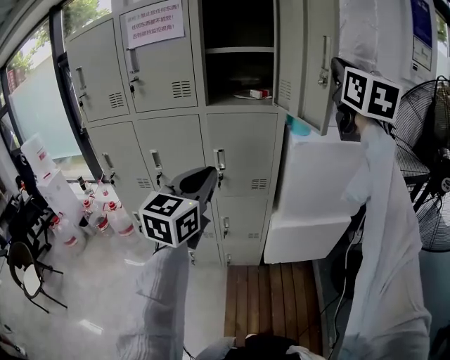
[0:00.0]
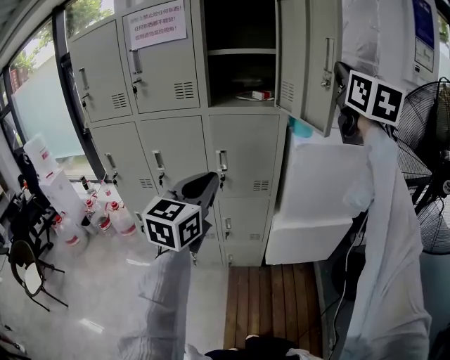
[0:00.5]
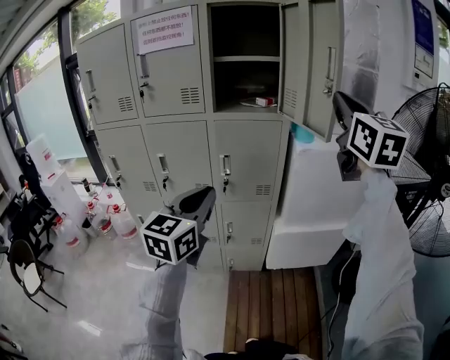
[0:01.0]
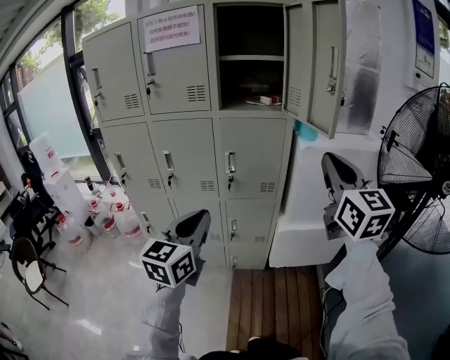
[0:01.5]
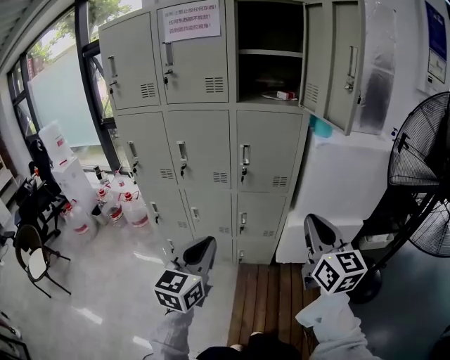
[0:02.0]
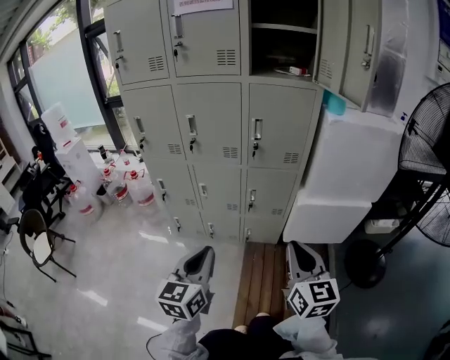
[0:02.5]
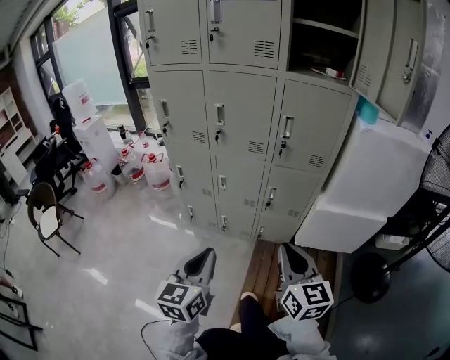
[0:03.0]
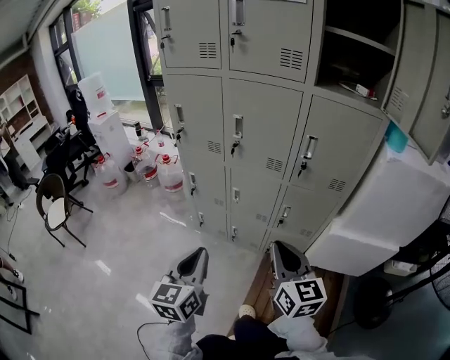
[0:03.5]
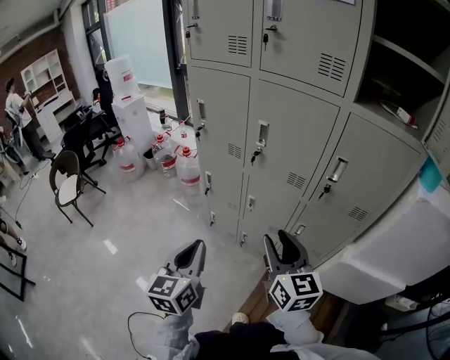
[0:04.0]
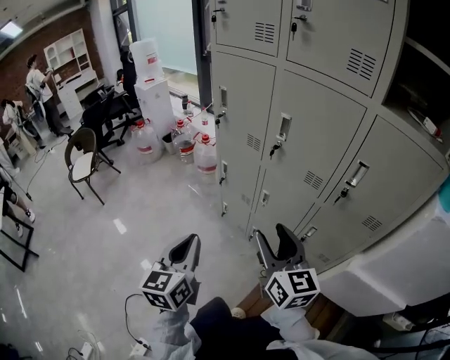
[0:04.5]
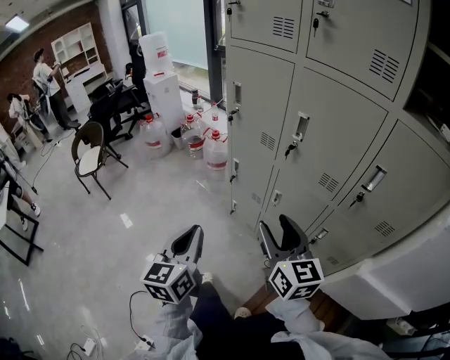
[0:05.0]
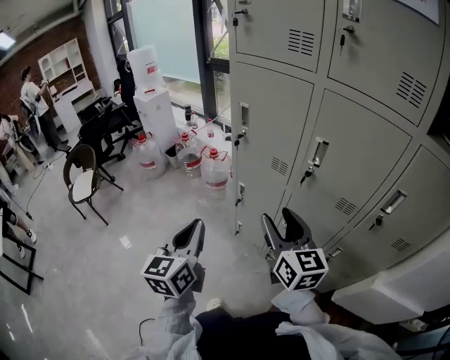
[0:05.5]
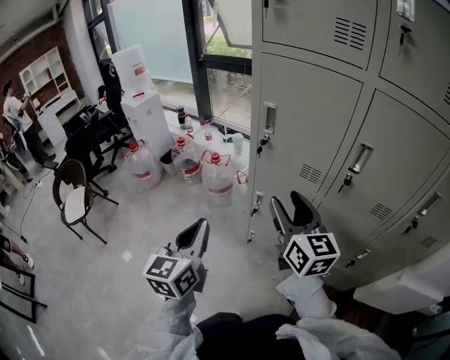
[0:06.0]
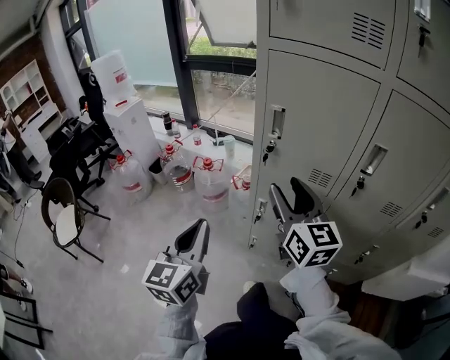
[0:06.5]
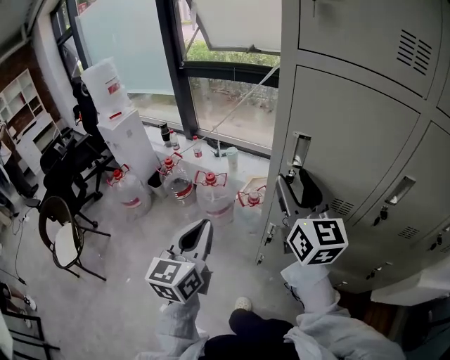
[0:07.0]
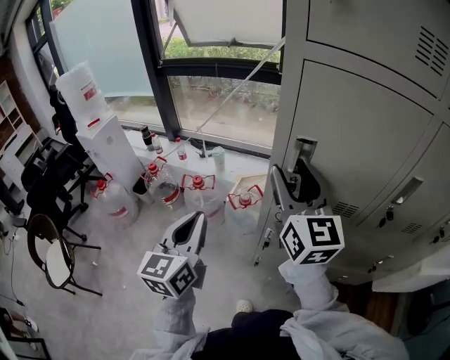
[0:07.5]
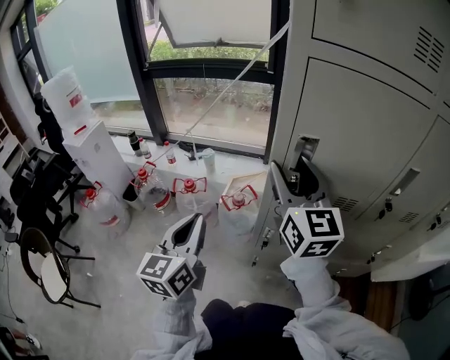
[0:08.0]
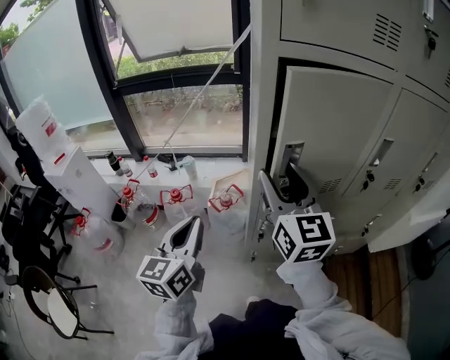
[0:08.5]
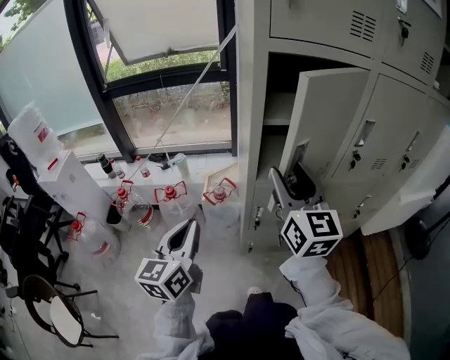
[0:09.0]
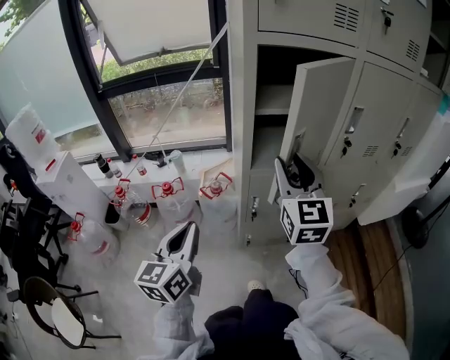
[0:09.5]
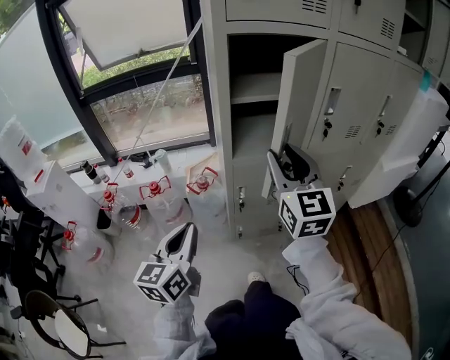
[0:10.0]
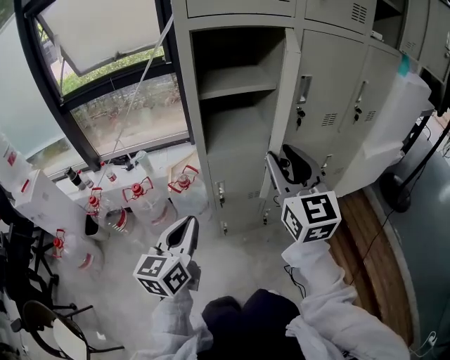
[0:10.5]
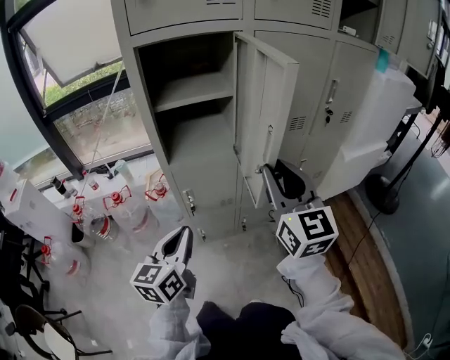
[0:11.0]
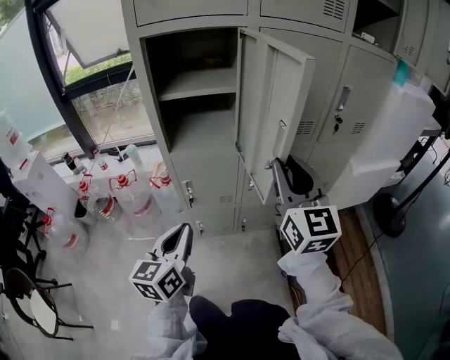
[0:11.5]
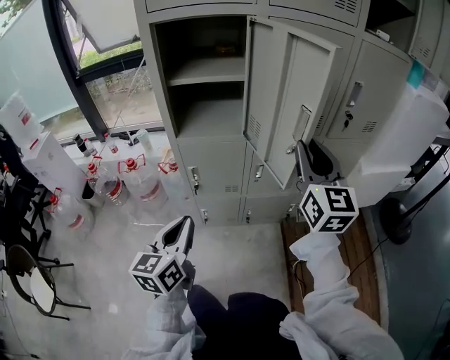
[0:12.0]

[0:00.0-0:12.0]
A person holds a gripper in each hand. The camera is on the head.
0:00.0 to 0:02.0: The left gripper heads backward, downward and to the left, covering some 20 cm. Meanwhile the right gripper heads downward and backward, covering roughly 40 cm, and swivels roughly 30 degrees.
0:02.0 to 0:04.0: The right gripper moves some 30 cm, turns by approximately 30 degrees, and opens its fingers, while the left gripper ends up approximately 20 cm from where it was, and changes its angle by approximately 40 degrees.
0:04.0 to 0:06.0: Both grippers move forward and to the left, about 35 cm.
0:06.0 to 0:08.0: Both grippers travel together forward and to the left, approximately 25 cm. The right gripper changes its angle by about 30 degrees.
0:08.0 to 0:10.0: The right gripper heads backward and to the right, covering approximately 15 cm, and changes its angle by some 20 degrees, while the left gripper shifts some 10 cm backward, and turns by roughly 20 degrees.
0:10.0 to 0:12.0: Both grippers travel together to the right, some 25 cm.

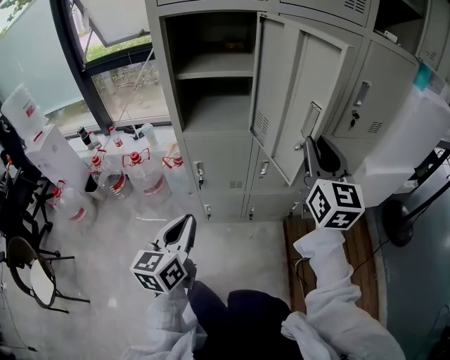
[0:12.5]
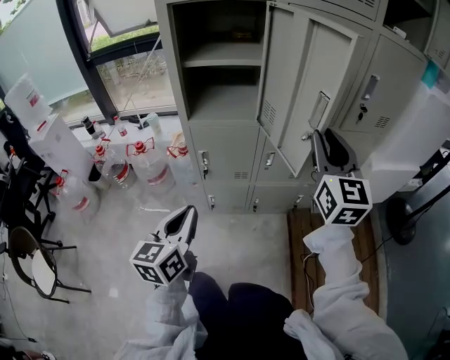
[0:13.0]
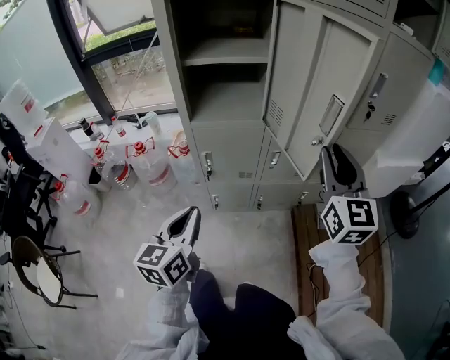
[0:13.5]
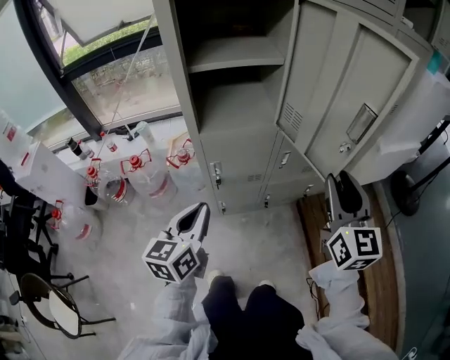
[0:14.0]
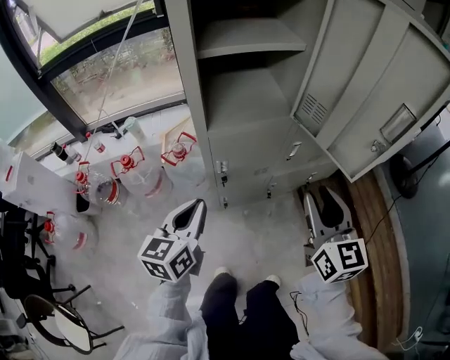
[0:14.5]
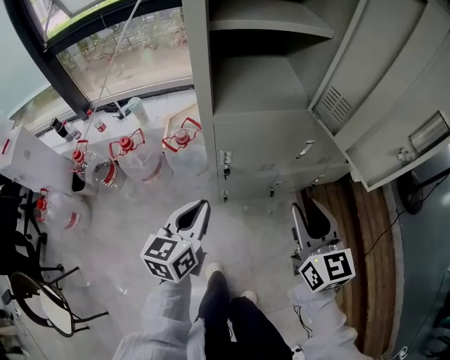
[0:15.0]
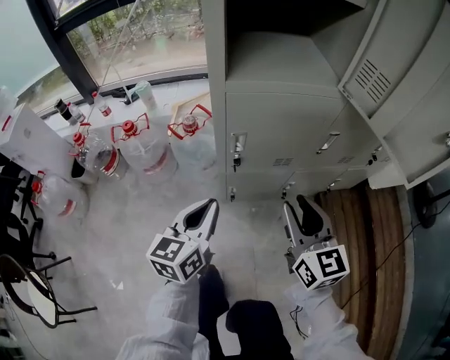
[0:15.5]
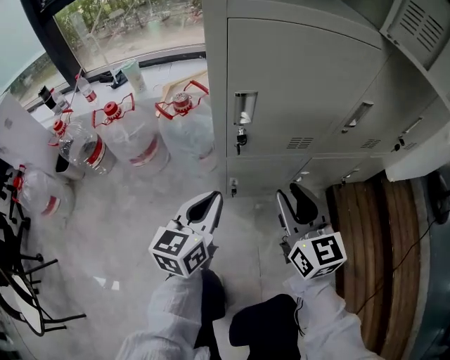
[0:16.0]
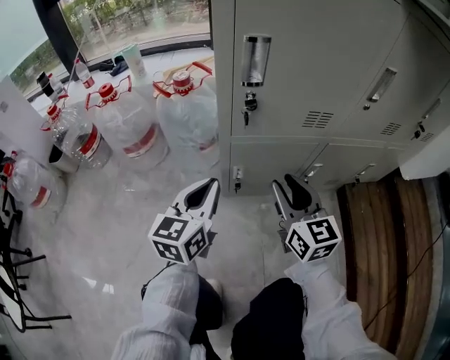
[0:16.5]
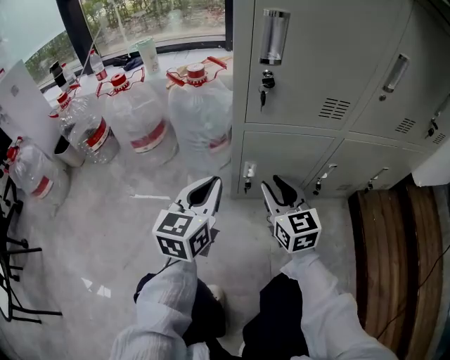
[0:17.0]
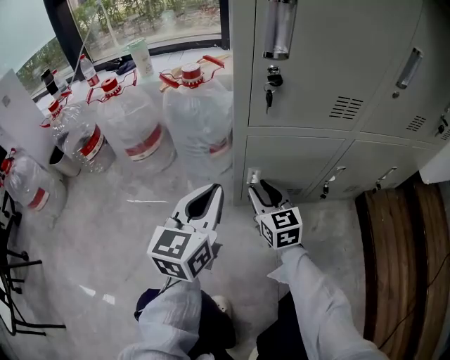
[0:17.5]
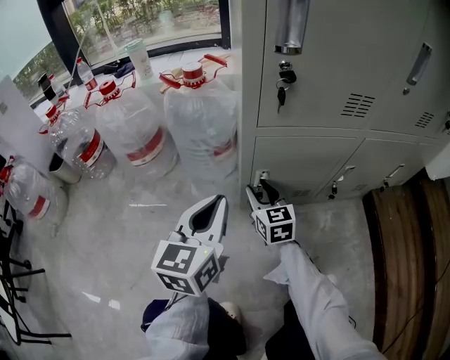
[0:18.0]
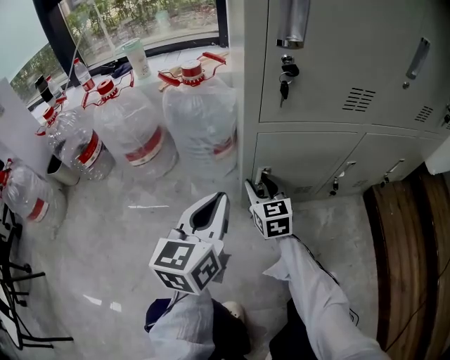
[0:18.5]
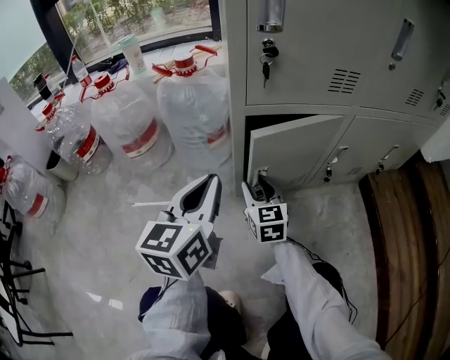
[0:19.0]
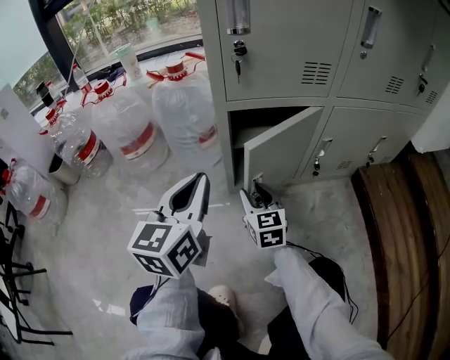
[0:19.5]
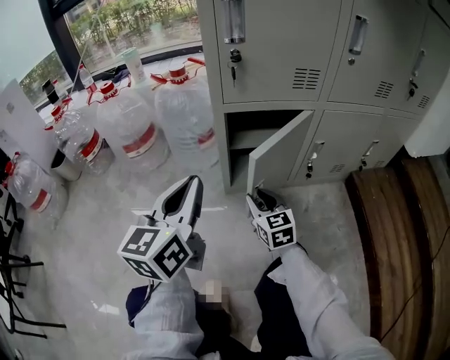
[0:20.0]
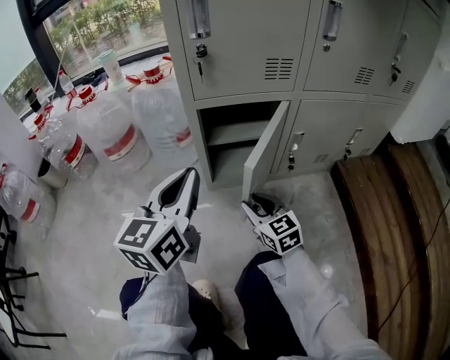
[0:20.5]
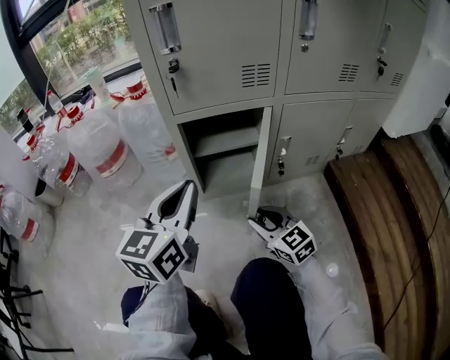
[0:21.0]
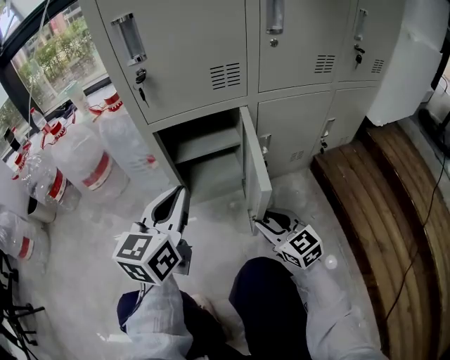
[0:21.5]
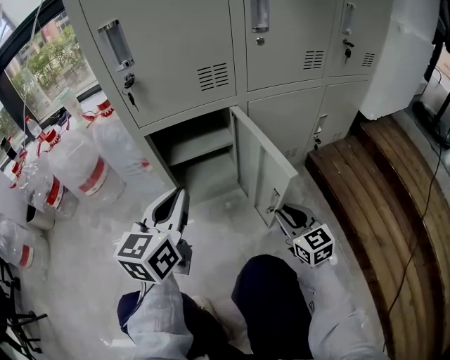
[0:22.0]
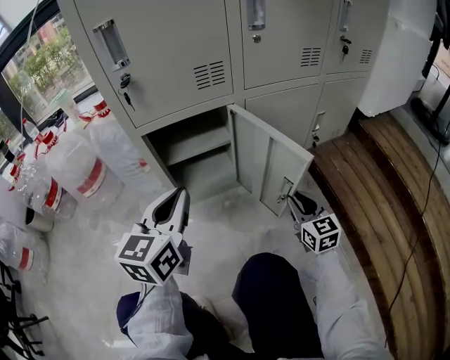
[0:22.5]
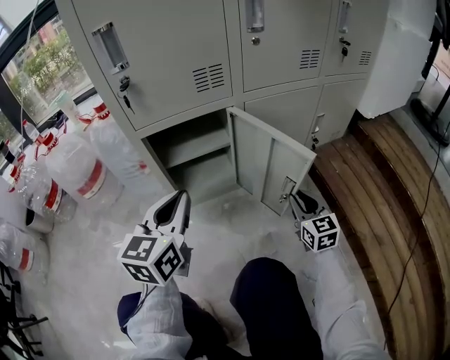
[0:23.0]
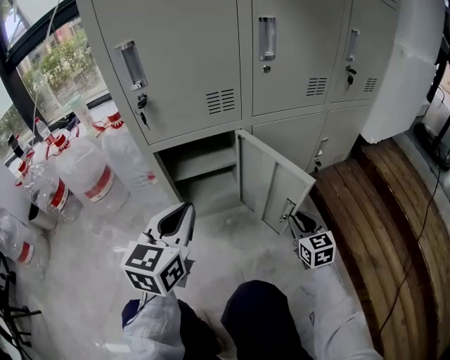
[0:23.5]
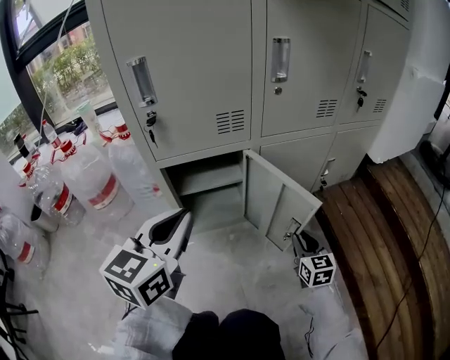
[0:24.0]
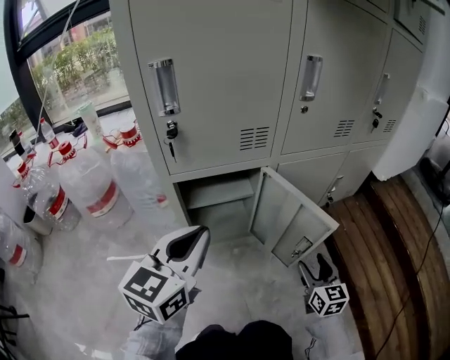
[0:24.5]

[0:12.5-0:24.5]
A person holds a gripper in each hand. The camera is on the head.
0:12.5 to 0:14.5: The left gripper is displaced to the left, forward and downward by roughly 20 cm; the right gripper travels to the left and downward by roughly 20 cm.
0:14.5 to 0:16.5: Both grippers move downward, roughly 50 cm.
0:16.5 to 0:18.5: The right gripper heads downward, to the left and forward, covering some 25 cm. The left gripper shifts approximately 5 cm downward.
0:18.5 to 0:20.5: The left gripper shifts about 10 cm backward, to the right and upward, while the right gripper goes approximately 20 cm backward and to the right.
0:20.5 to 0:22.5: The right gripper shifts some 25 cm to the right, and rotates some 30 degrees. The left gripper is displaced to the right by about 10 cm.
0:22.5 to 0:24.5: The right gripper opens up. The left gripper is displaced upward by approximately 5 cm.

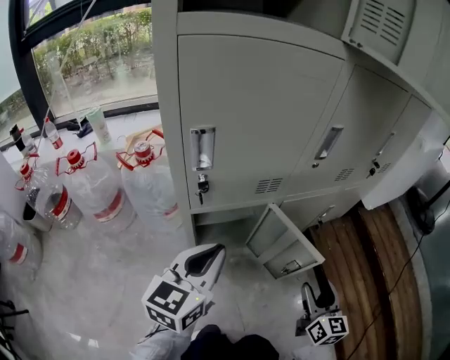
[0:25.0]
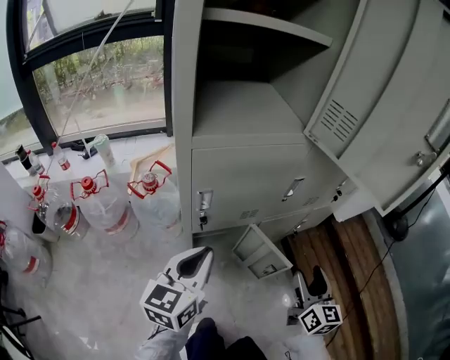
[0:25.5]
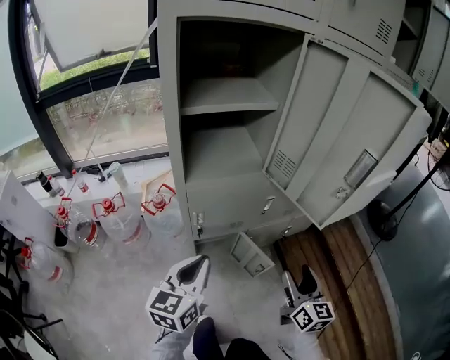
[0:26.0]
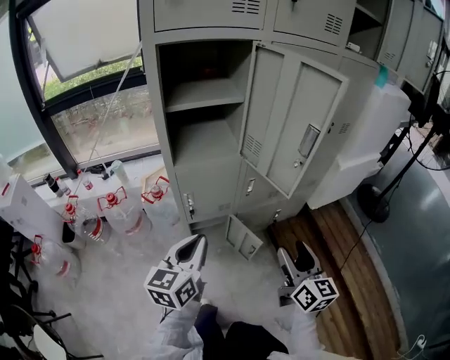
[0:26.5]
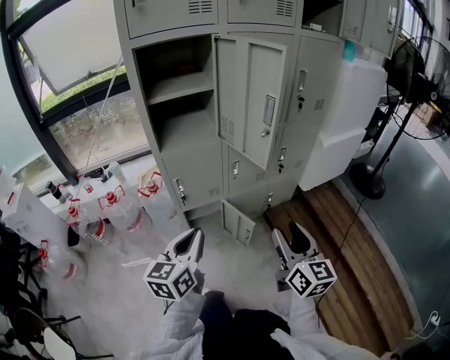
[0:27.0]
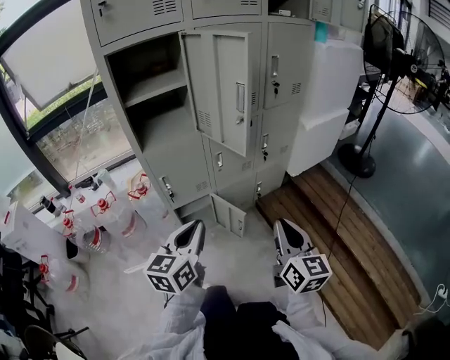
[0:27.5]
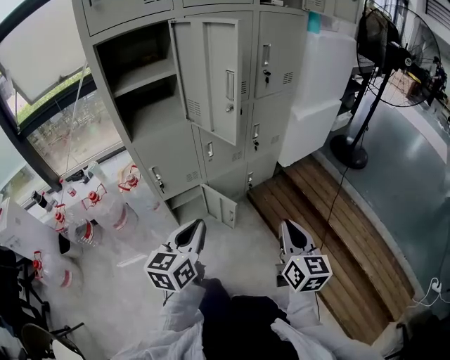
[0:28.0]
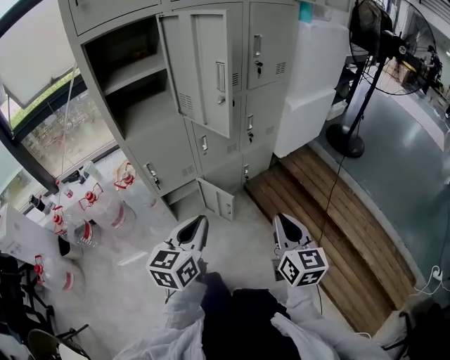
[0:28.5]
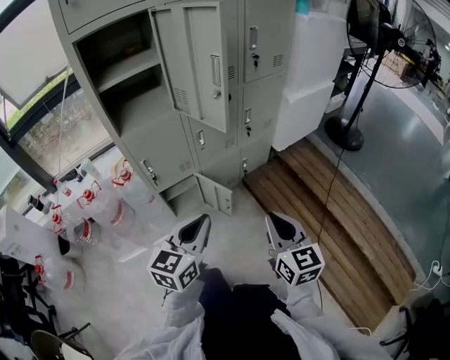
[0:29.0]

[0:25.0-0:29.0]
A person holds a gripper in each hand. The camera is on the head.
0:25.0 to 0:27.0: The left gripper moves upward and backward, roughly 50 cm; the right gripper travels upward by roughly 50 cm.
0:27.0 to 0:29.0: The right gripper is displaced backward by about 5 cm, and closes up. Meanwhile the left gripper is displaced to the right by approximately 10 cm, and changes its angle by about 20 degrees.
